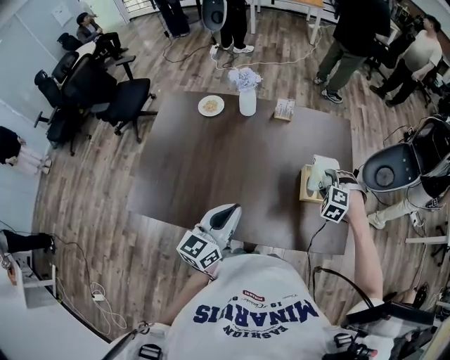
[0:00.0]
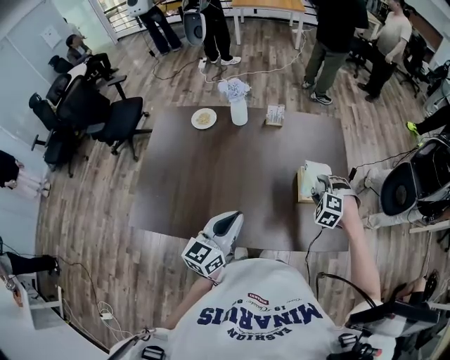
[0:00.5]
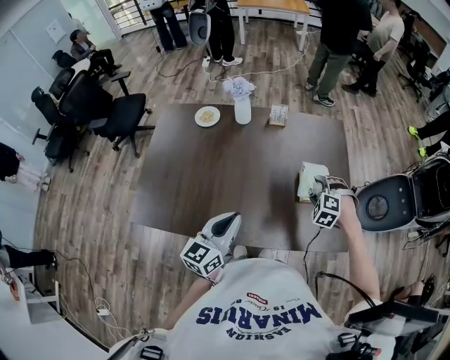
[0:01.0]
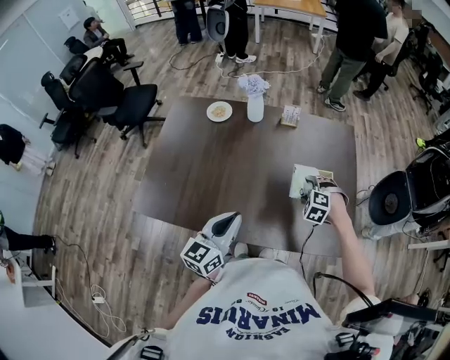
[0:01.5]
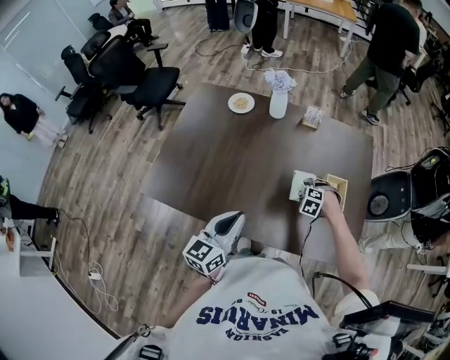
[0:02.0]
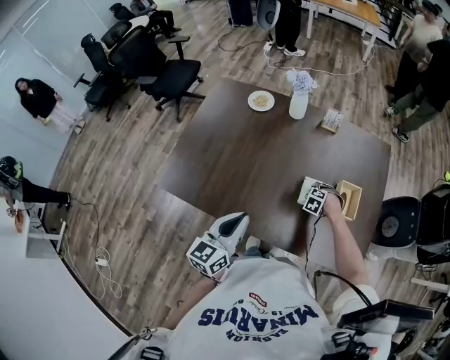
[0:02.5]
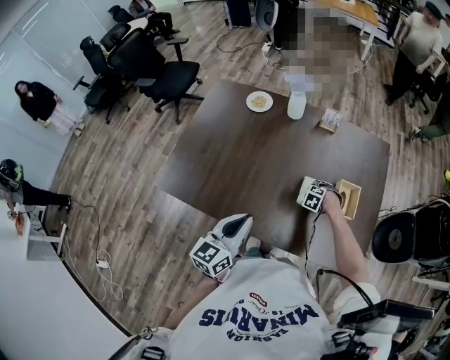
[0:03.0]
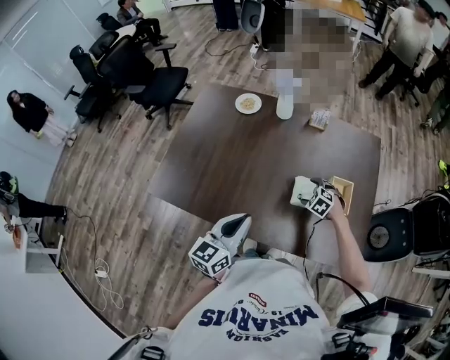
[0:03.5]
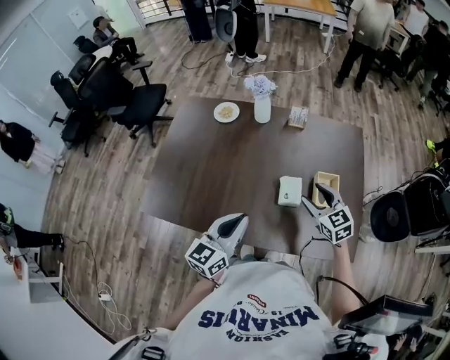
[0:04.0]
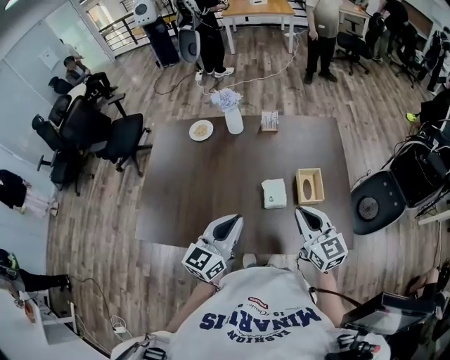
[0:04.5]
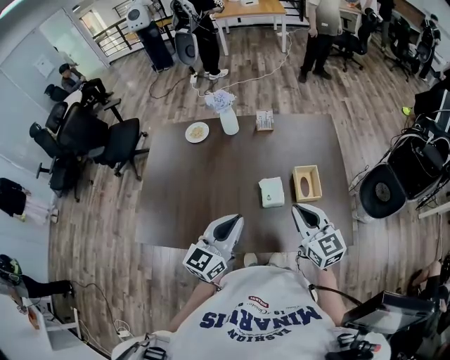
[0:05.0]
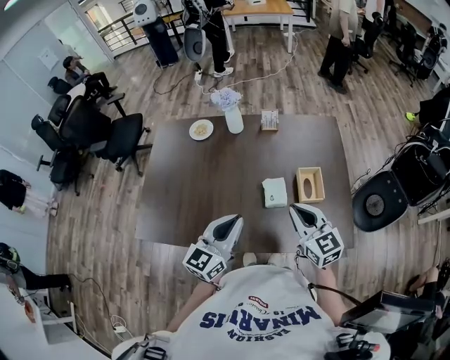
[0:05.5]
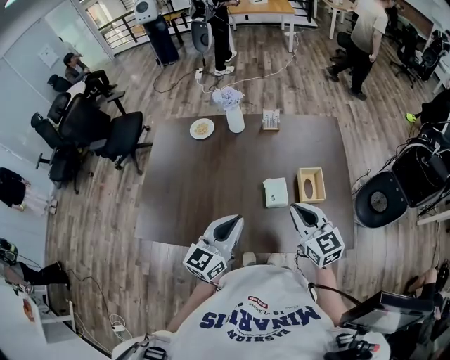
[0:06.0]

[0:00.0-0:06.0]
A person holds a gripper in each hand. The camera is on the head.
0:00.0 to 0:02.0: The right gripper is displaced to the left and downward by approximately 20 cm. The left gripper heads backward, covering approximately 5 cm.
0:02.0 to 0:04.0: The right gripper moves upward, some 20 cm, and tilts its fingers approximately 50 degrees upward.
0:04.0 to 0:06.0: The right gripper heads backward and upward, covering approximately 10 cm, and closes.

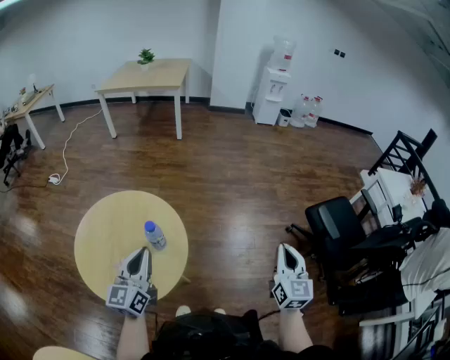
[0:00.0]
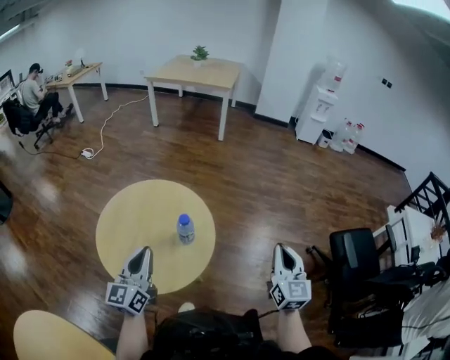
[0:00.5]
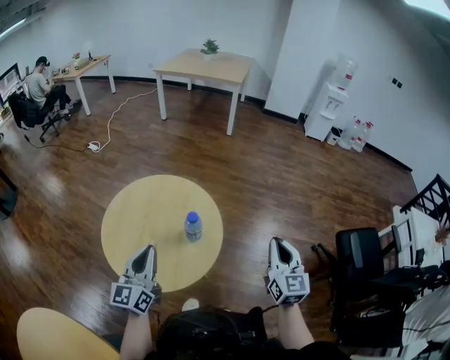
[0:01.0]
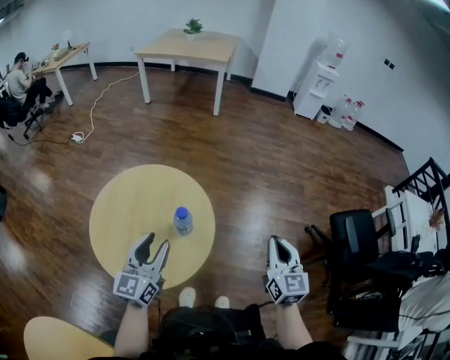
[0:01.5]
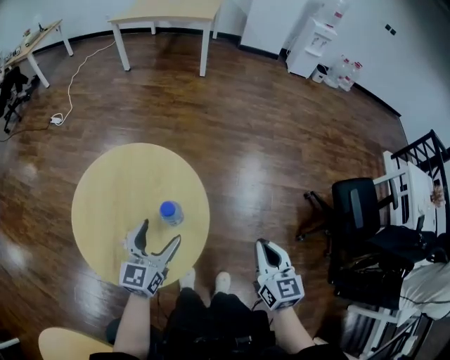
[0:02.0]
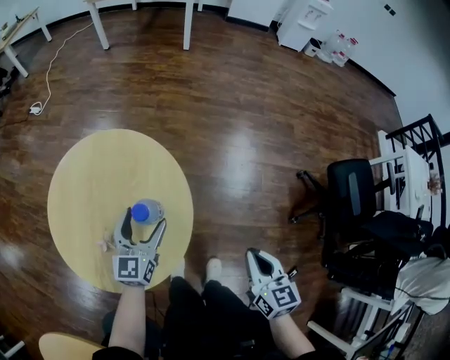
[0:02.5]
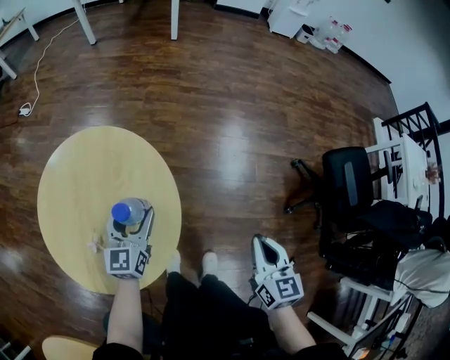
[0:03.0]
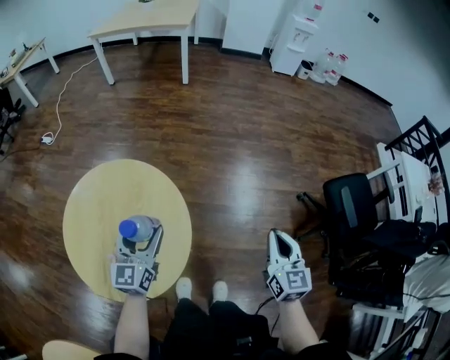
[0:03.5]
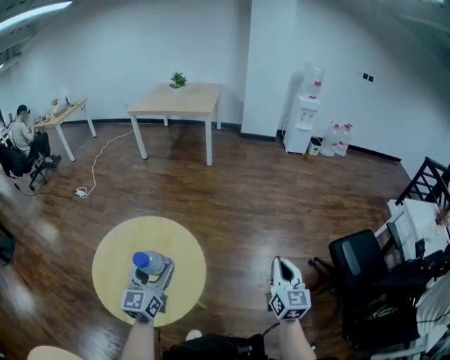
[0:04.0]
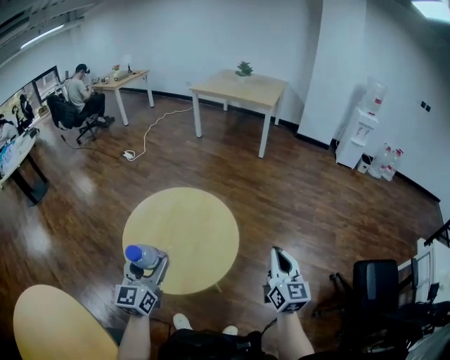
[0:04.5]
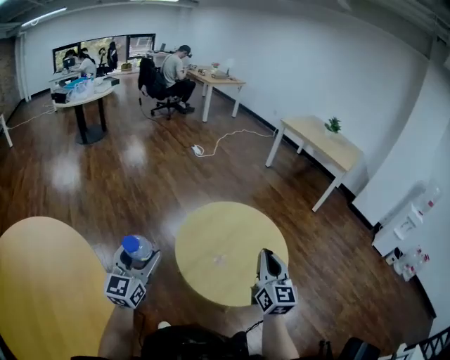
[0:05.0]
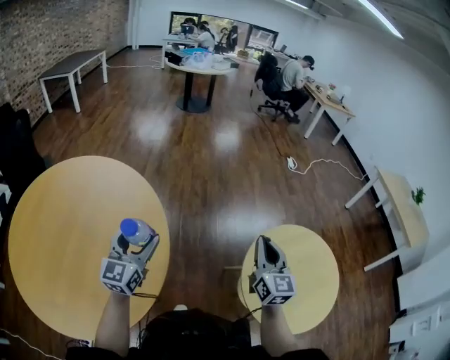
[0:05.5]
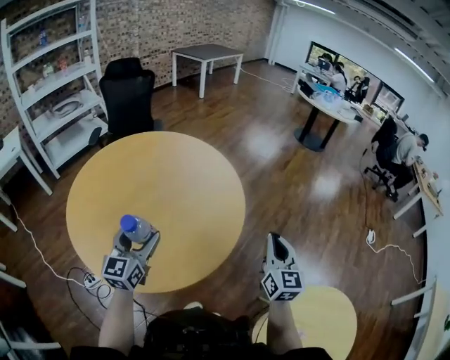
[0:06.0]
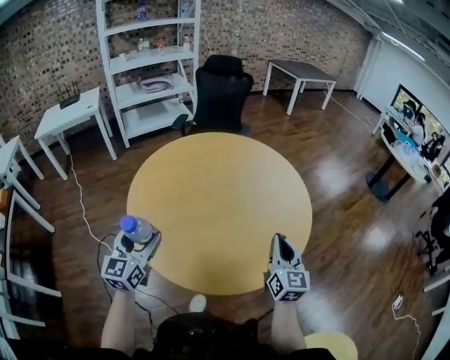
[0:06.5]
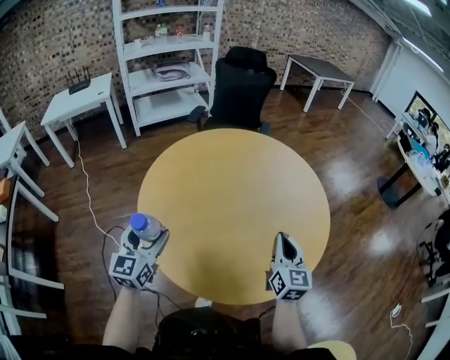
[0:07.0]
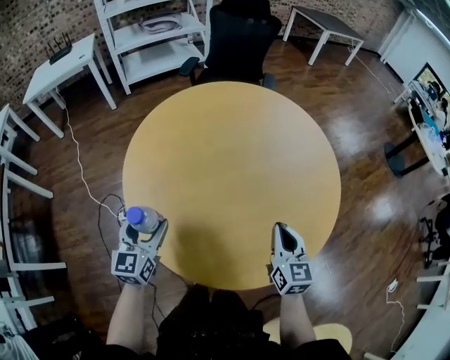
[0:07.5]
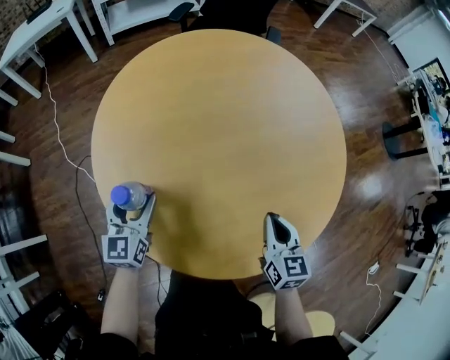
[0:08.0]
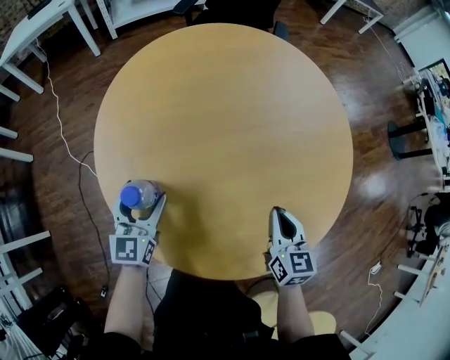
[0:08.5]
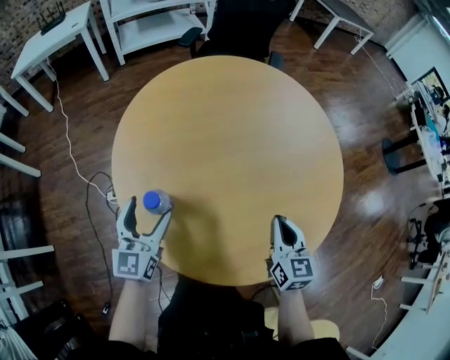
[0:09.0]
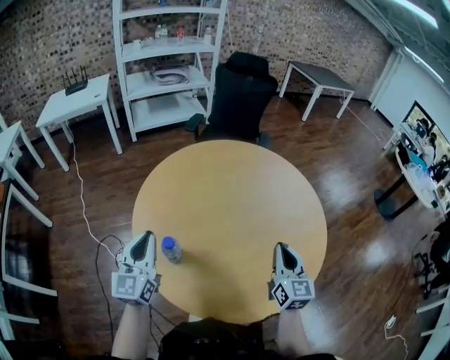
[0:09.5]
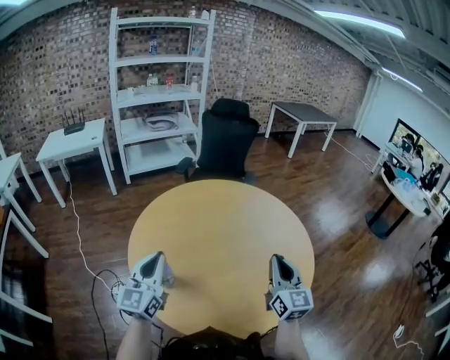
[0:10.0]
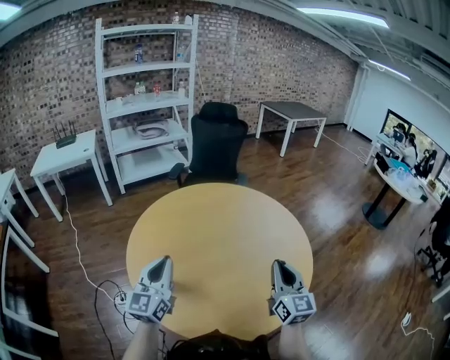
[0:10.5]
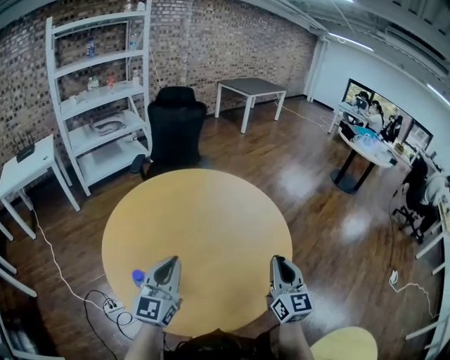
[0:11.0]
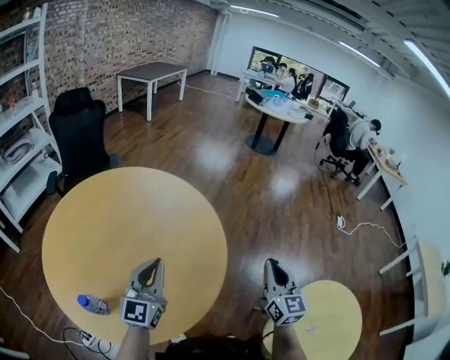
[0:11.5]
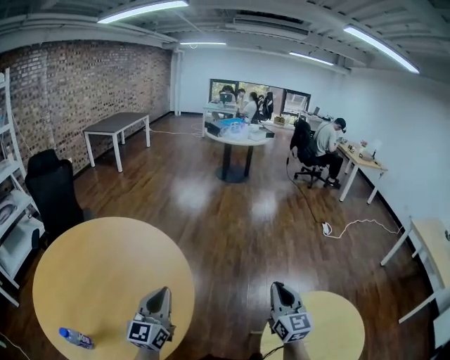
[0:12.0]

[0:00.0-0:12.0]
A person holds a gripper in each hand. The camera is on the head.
0:00.0 to 0:02.0: The right gripper moves to the left and downward, some 20 cm, and swivels some 20 degrees, while the left gripper heads downward and forward, covering about 15 cm, and opens up.
0:02.0 to 0:04.0: The right gripper travels to the right and upward by about 15 cm. Meanwhile the left gripper travels upward by approximately 15 cm.
0:04.0 to 0:06.0: The left gripper changes place by about 70 cm, and swivels roughly 120 degrees. Meanwhile the right gripper moves approximately 80 cm, and changes its angle by approximately 120 degrees.
0:06.0 to 0:08.0: The left gripper shifts by about 30 cm, and swivels approximately 40 degrees, while the right gripper moves approximately 35 cm, and turns by about 40 degrees.
0:08.0 to 0:10.0: Both grippers move upward, about 20 cm. The right gripper angles its fingers upward, by about 30 degrees; the left gripper swivels some 30 degrees, and closes up.
0:10.0 to 0:12.0: Both grippers are carried approximately 40 cm. The left gripper changes its angle by approximately 50 degrees, while the right gripper changes its angle by roughly 50 degrees.

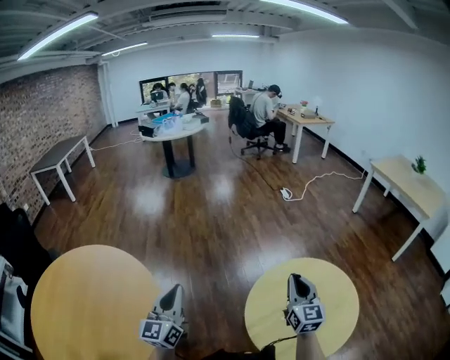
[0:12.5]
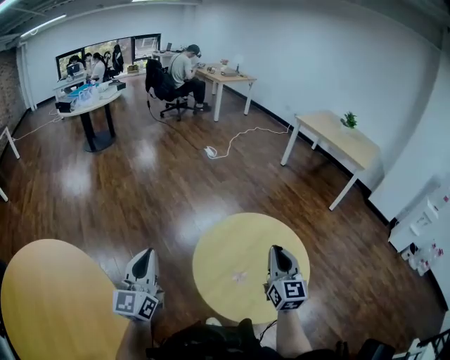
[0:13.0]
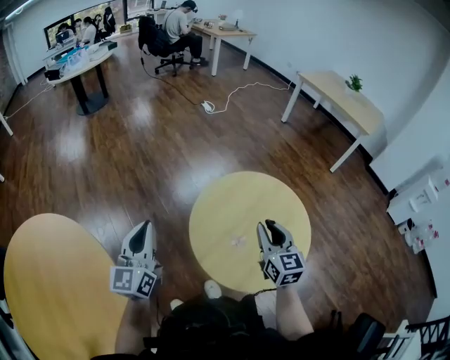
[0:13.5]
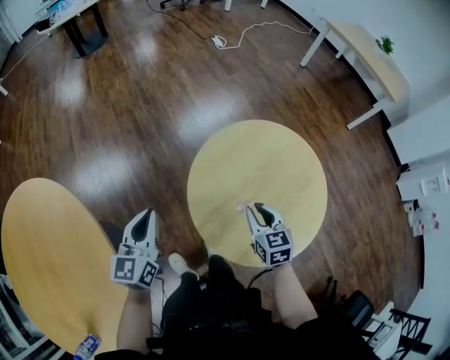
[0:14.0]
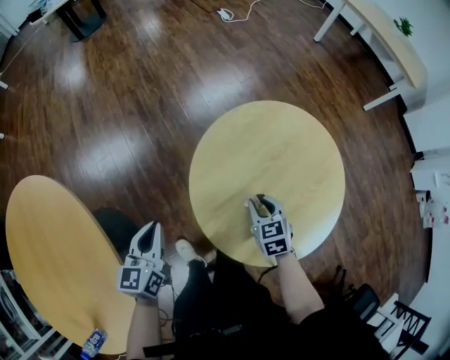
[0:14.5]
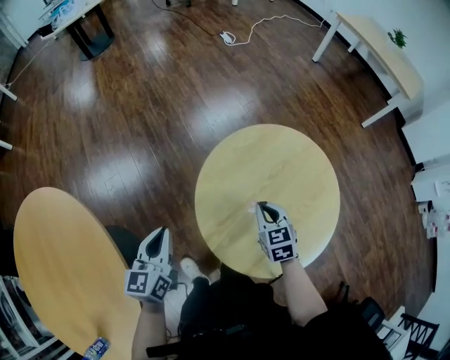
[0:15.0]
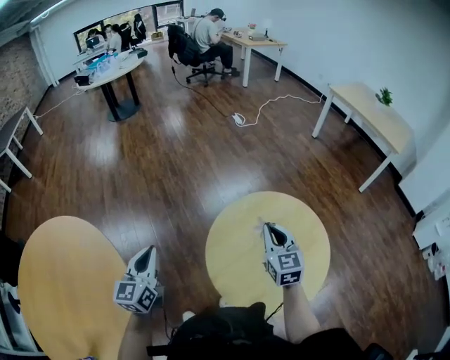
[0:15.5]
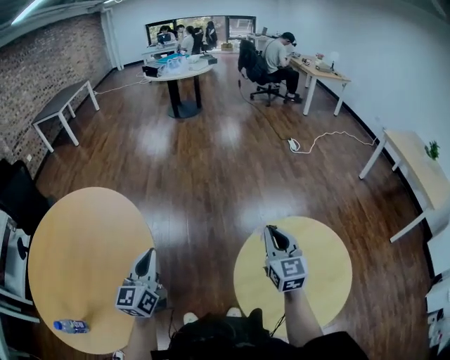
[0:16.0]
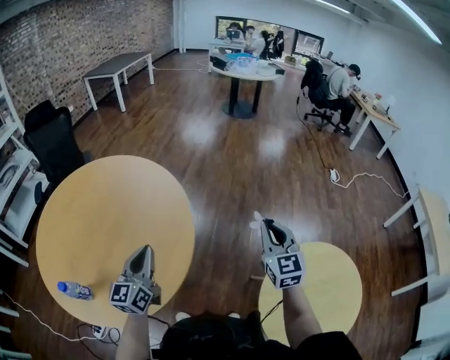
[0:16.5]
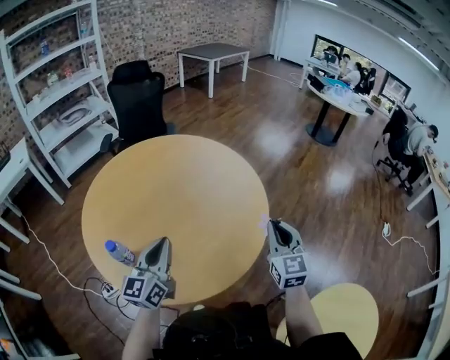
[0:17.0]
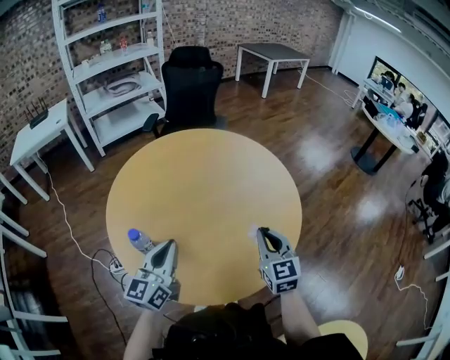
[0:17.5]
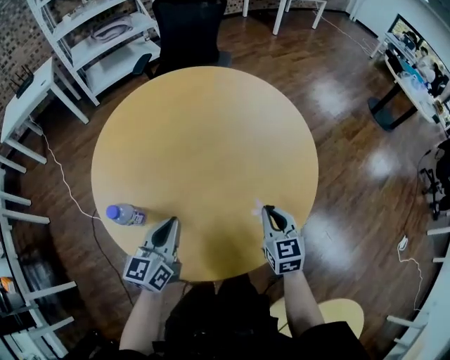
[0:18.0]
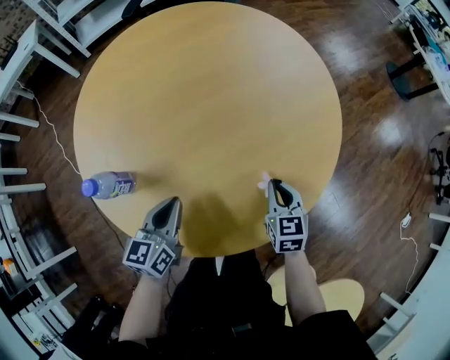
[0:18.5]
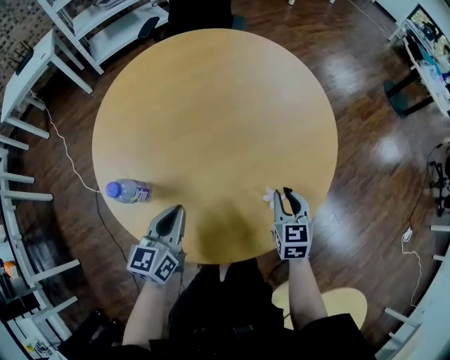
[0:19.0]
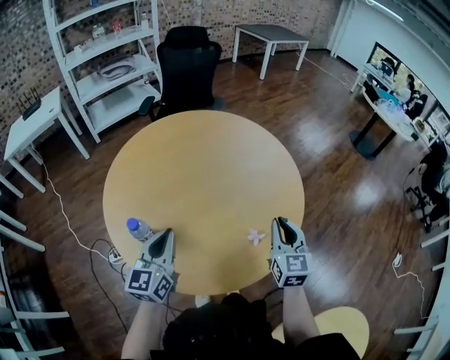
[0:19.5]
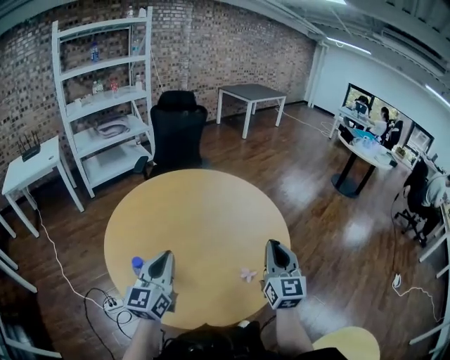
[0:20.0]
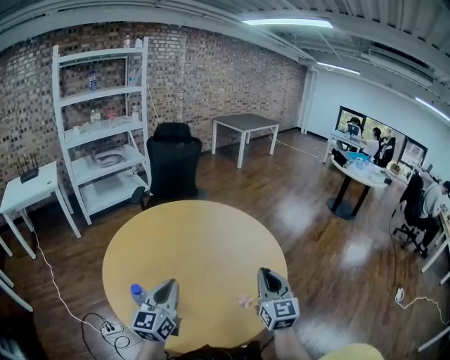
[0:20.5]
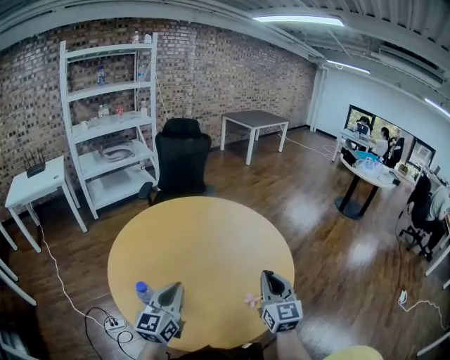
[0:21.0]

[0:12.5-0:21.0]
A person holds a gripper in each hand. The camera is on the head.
0:12.5 to 0:14.5: The left gripper heads downward and to the right, covering about 25 cm, and points its fingers about 30 degrees further downward, while the right gripper goes roughly 30 cm downward, points its fingers roughly 50 degrees further downward, and opens up.
0:14.5 to 0:16.5: The right gripper shifts approximately 35 cm upward, tips its fingers upward by some 40 degrees, and closes its fingers. Meanwhile the left gripper changes place by about 35 cm, and swivels some 50 degrees.
0:16.5 to 0:19.0: The right gripper changes place by approximately 40 cm, and swivels some 40 degrees; the left gripper shifts by about 30 cm, and turns by approximately 40 degrees.
0:19.0 to 0:21.0: The two grippers go about 20 cm upward. The right gripper angles its fingers upward, by roughly 30 degrees. The left gripper turns by approximately 30 degrees.
